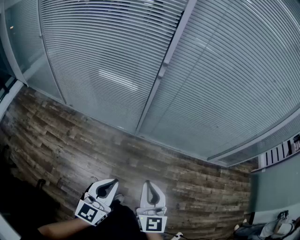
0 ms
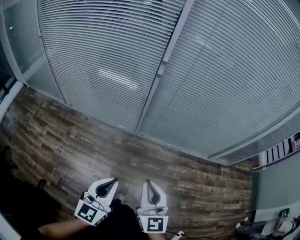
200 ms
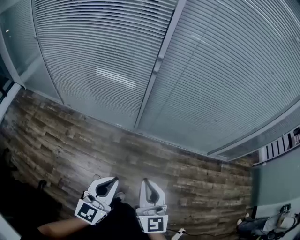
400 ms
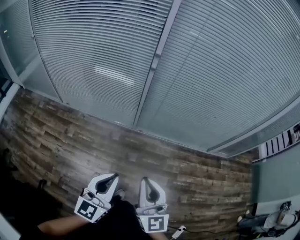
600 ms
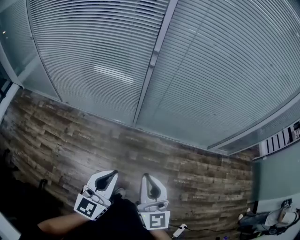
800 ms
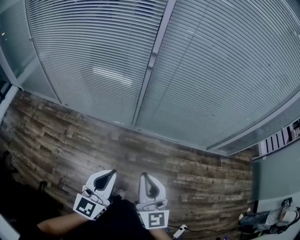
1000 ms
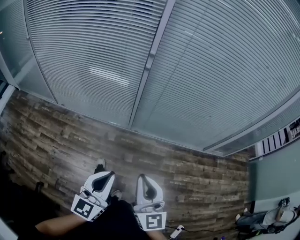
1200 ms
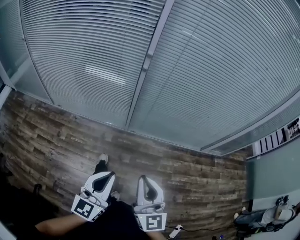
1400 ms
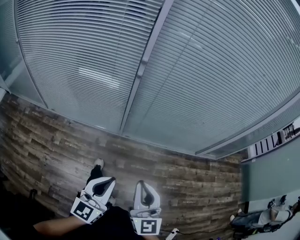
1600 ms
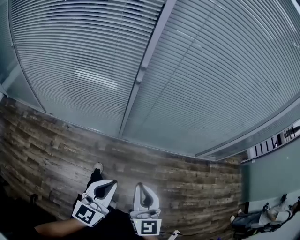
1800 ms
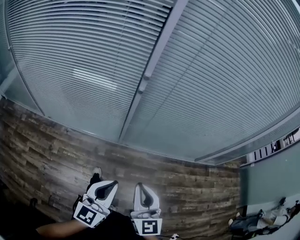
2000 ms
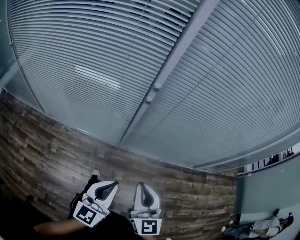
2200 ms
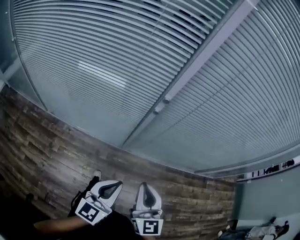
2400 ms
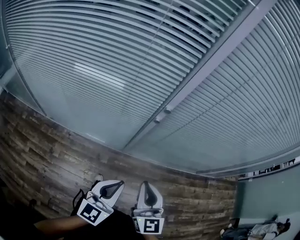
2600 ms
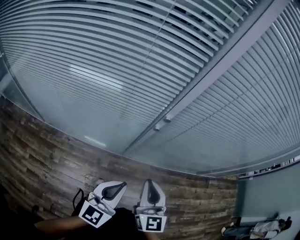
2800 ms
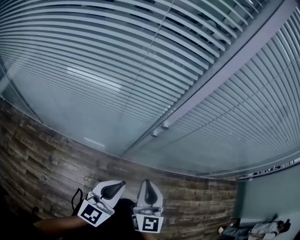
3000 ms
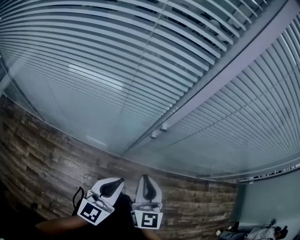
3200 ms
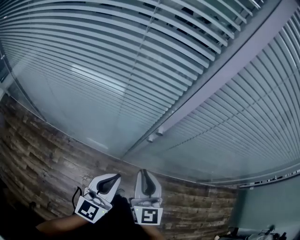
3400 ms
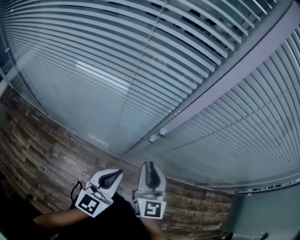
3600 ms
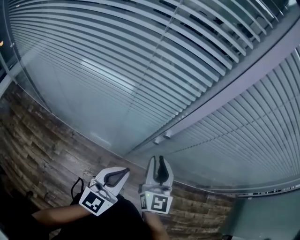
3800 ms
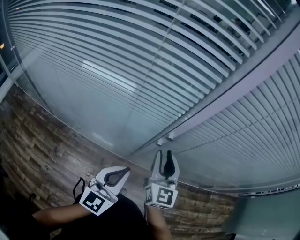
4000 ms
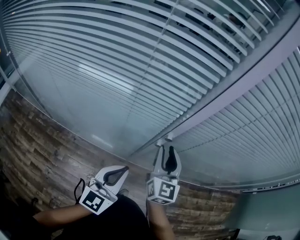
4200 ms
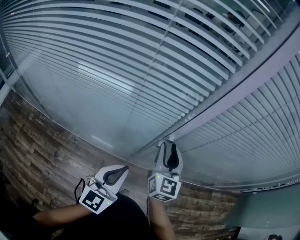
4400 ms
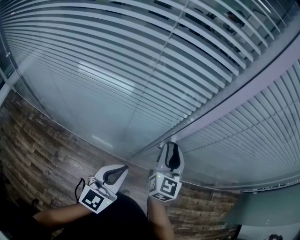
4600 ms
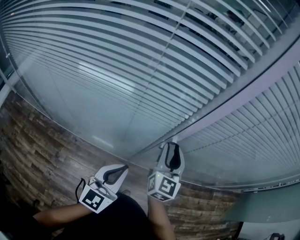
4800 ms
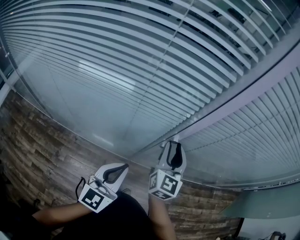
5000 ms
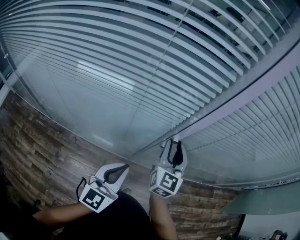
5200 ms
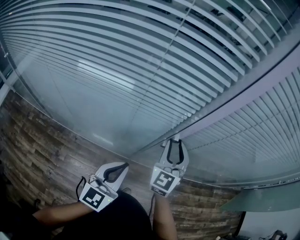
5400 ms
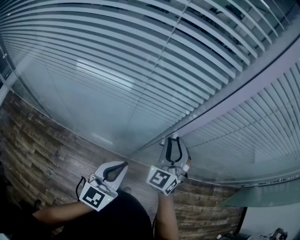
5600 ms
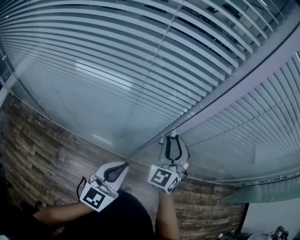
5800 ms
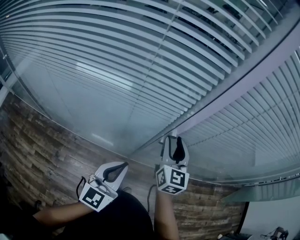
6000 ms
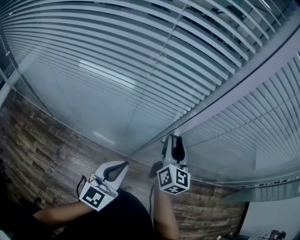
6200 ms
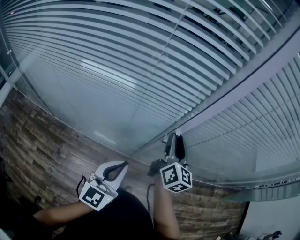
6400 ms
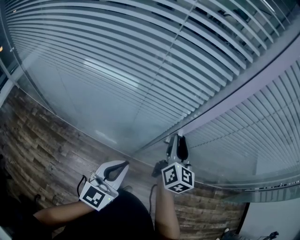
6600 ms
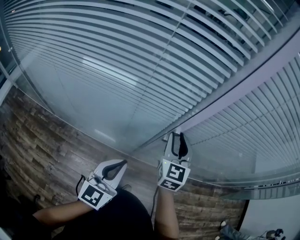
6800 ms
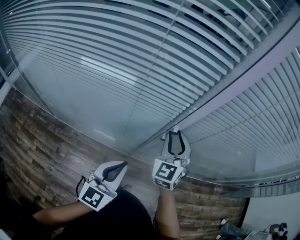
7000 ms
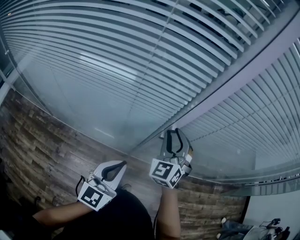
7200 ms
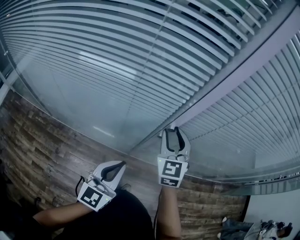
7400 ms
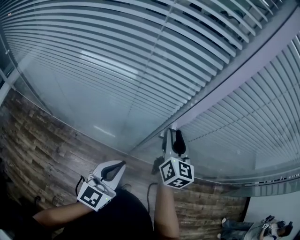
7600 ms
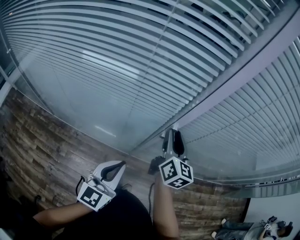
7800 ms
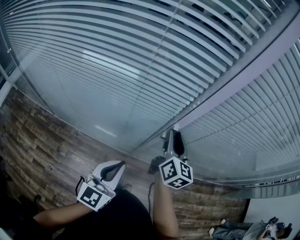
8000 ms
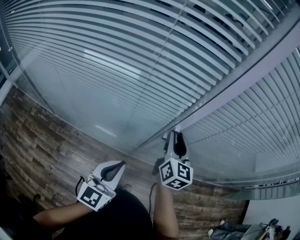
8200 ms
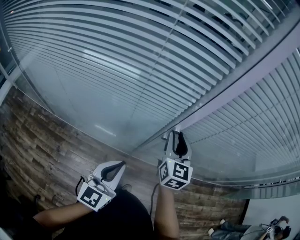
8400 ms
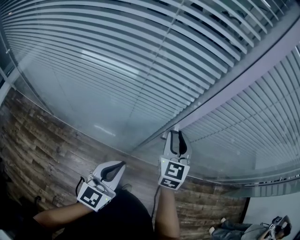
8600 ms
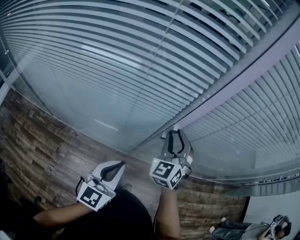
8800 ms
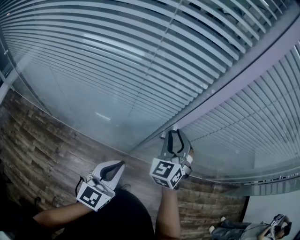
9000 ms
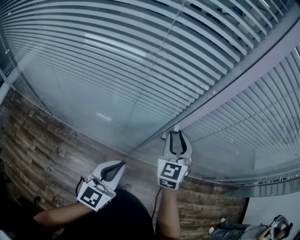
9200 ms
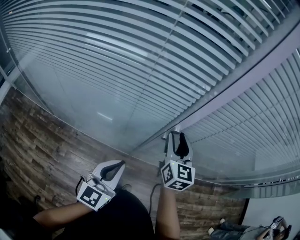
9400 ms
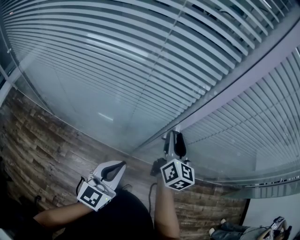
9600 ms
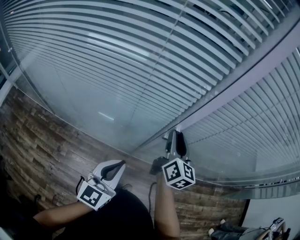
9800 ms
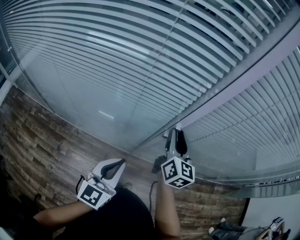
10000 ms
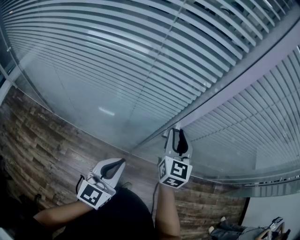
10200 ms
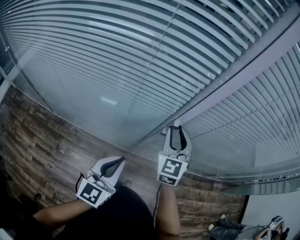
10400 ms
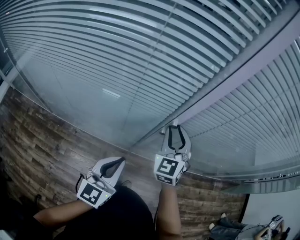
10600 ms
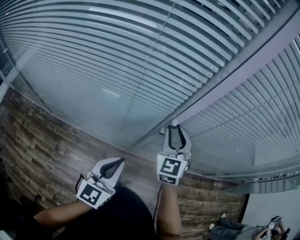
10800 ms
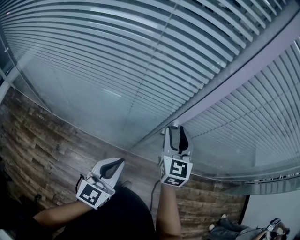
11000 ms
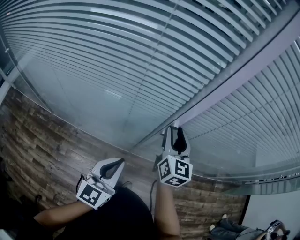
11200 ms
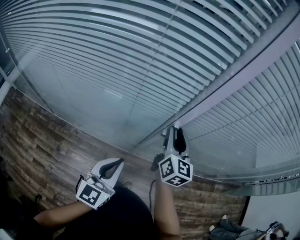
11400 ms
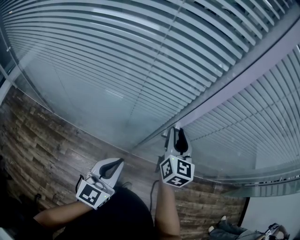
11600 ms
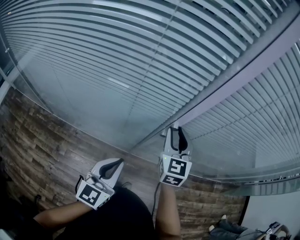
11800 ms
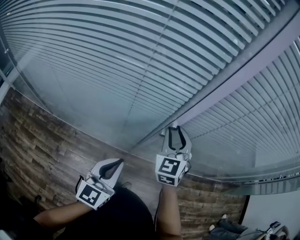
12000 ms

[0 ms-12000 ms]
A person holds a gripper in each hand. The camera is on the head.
0 ms to 1600 ms: The right gripper ends up about 5 cm from where it was; the left gripper heads forward, covering some 5 cm.
1600 ms to 3000 ms: The two grippers go approximately 30 cm forward and to the left.
3000 ms to 4400 ms: The left gripper goes about 5 cm forward; the right gripper is displaced forward by roughly 20 cm, and opens up.
7600 ms to 9000 ms: The right gripper rolls counterclockwise, seen from behind, by about 60 degrees.
9000 ms to 10400 ms: The right gripper rotates roughly 20 degrees.

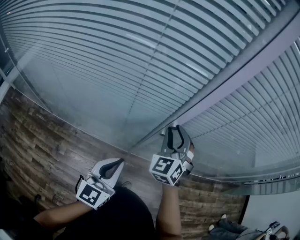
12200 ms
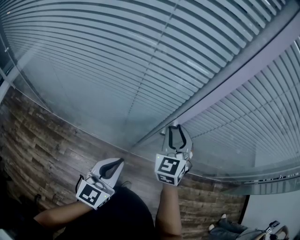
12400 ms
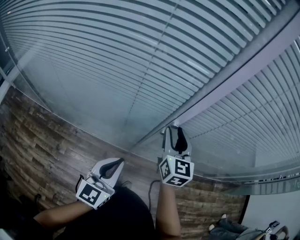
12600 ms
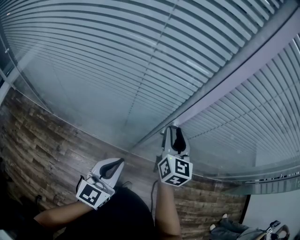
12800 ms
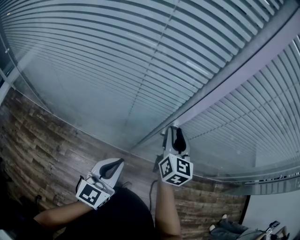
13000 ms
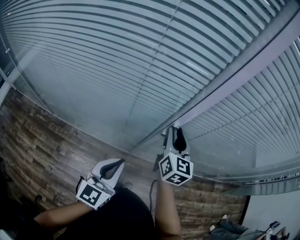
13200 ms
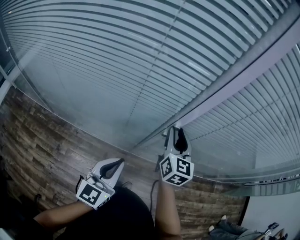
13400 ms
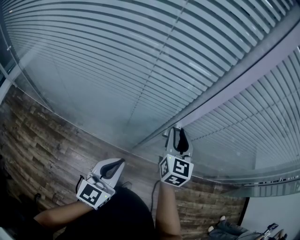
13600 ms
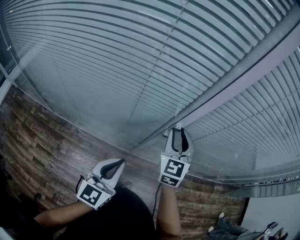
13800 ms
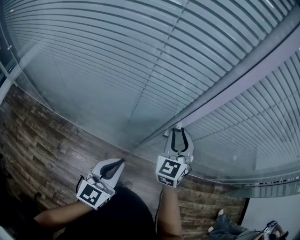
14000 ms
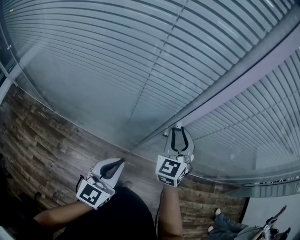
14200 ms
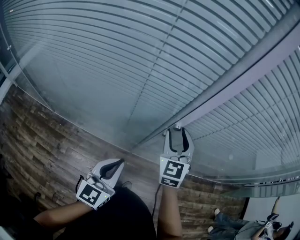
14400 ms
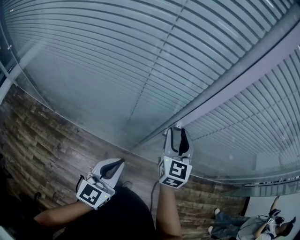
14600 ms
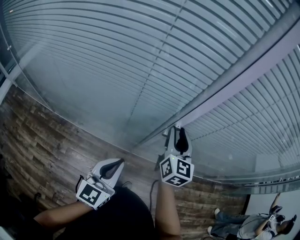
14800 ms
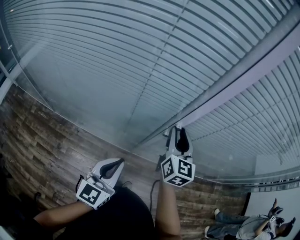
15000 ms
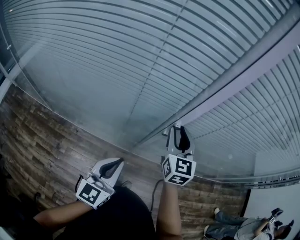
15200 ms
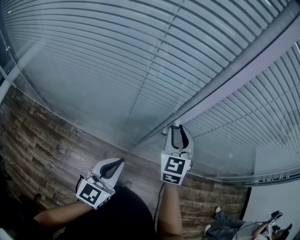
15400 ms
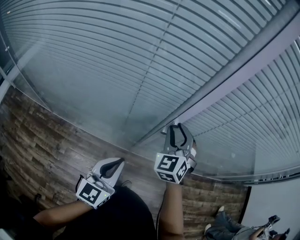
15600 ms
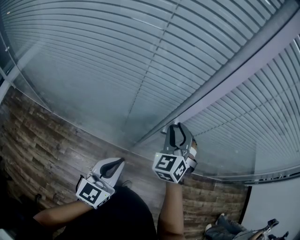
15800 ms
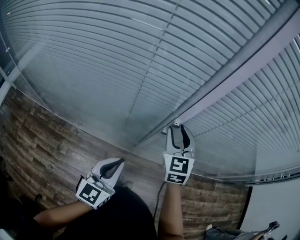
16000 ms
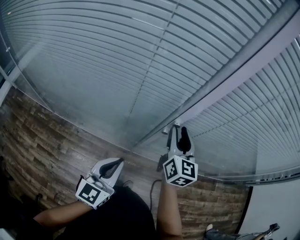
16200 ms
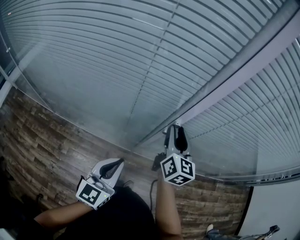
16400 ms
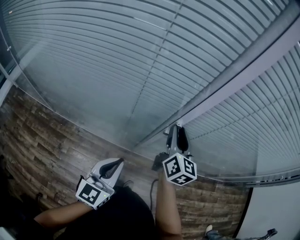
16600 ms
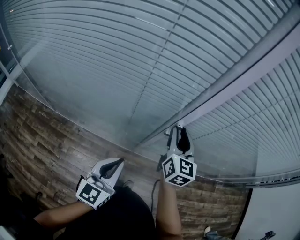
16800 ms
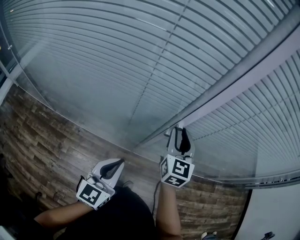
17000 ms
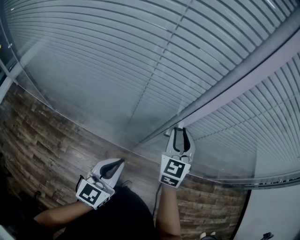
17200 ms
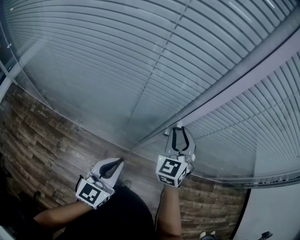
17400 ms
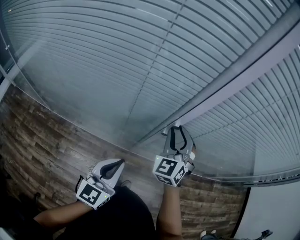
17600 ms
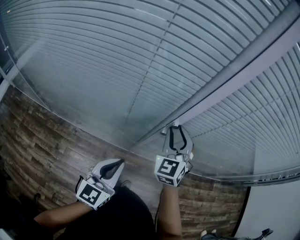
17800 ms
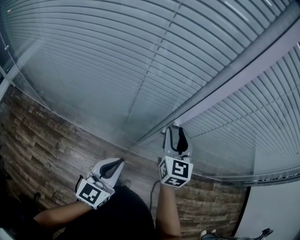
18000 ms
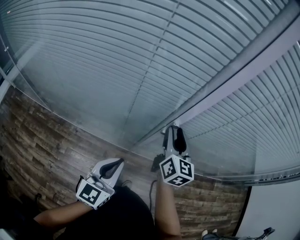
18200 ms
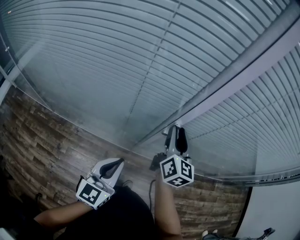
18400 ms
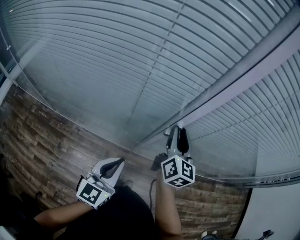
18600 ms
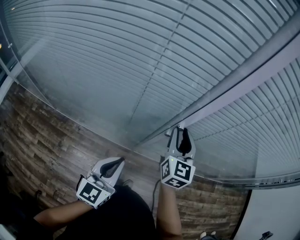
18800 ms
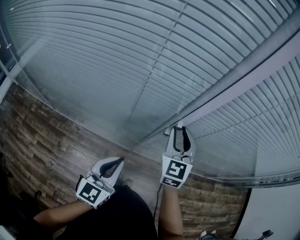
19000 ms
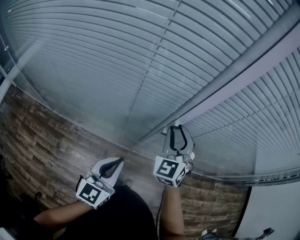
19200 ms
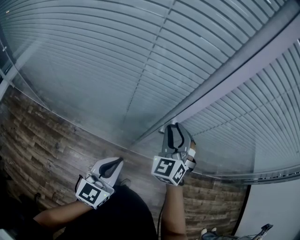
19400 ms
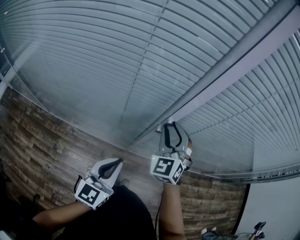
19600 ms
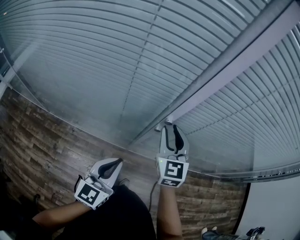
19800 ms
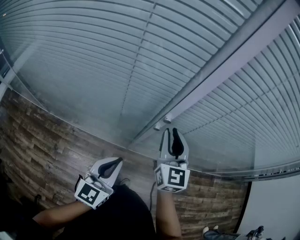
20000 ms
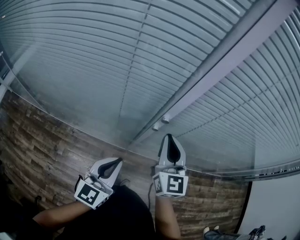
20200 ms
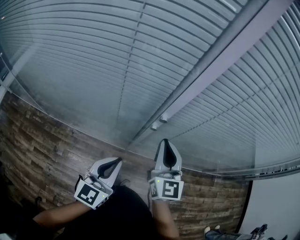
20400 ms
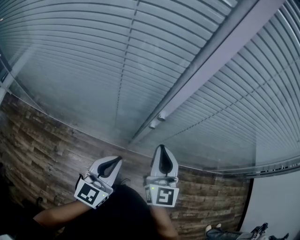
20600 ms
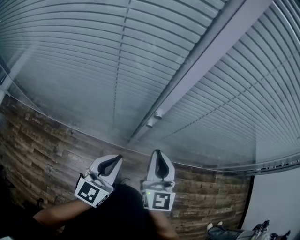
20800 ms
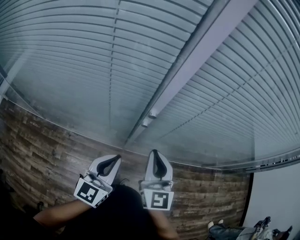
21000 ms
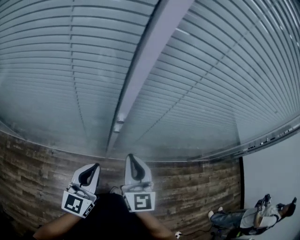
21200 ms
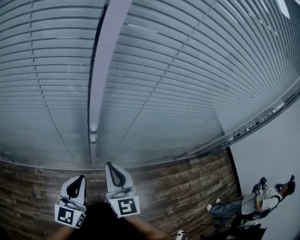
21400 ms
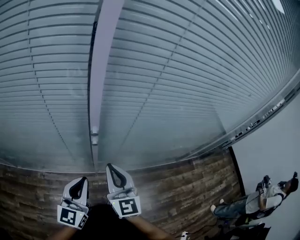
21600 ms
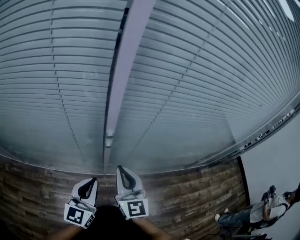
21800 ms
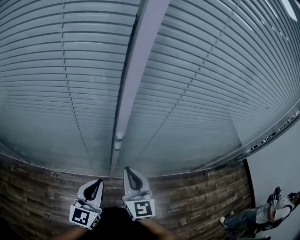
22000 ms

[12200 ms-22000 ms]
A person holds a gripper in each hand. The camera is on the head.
12200 ms to 13600 ms: The right gripper rotates around the line of its fingers by some 40 degrees, clockwise from behind.
16400 ms to 17800 ms: The right gripper twists some 50 degrees counterclockwise, seen from behind.
19200 ms to 20600 ms: The right gripper is displaced backward by about 10 cm, turns by some 40 degrees, and closes.
20600 ms to 22000 ms: The grippers make only small movements.

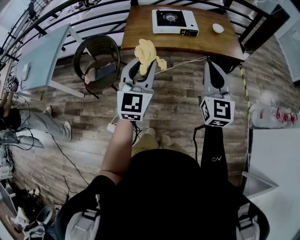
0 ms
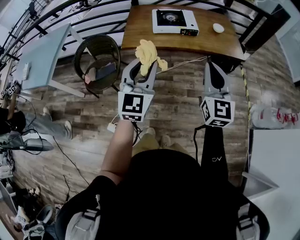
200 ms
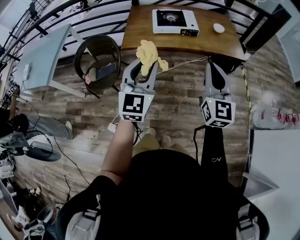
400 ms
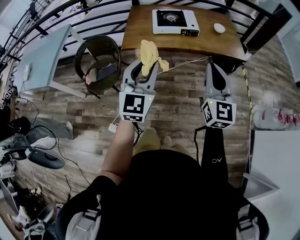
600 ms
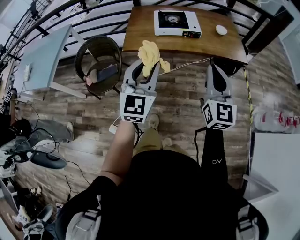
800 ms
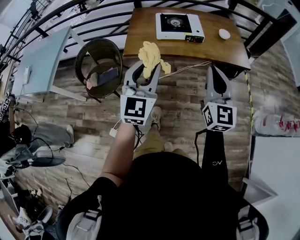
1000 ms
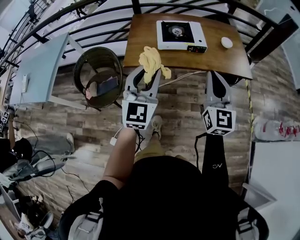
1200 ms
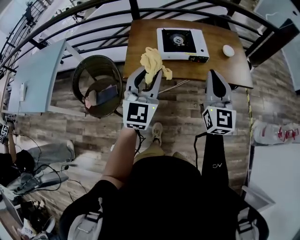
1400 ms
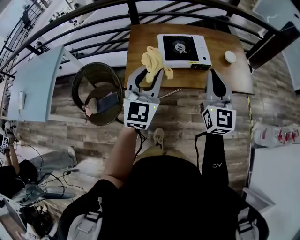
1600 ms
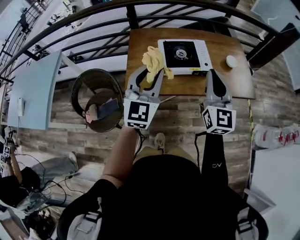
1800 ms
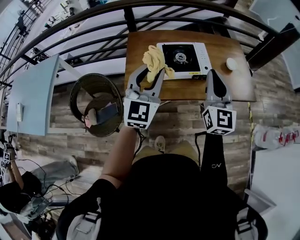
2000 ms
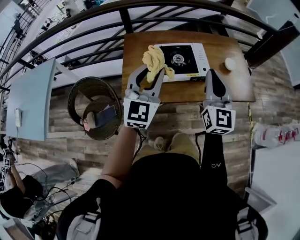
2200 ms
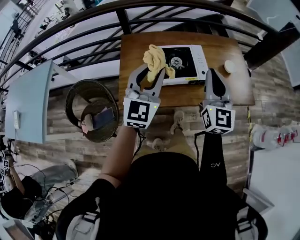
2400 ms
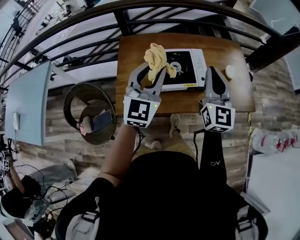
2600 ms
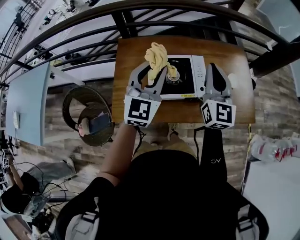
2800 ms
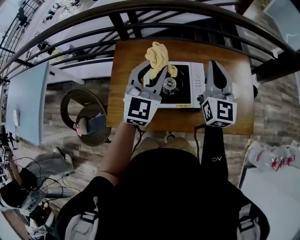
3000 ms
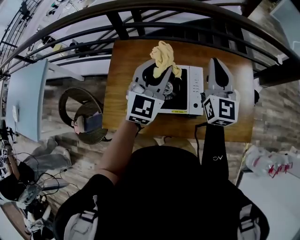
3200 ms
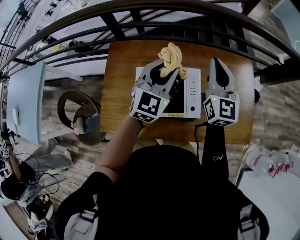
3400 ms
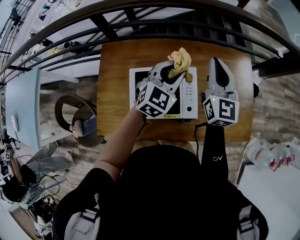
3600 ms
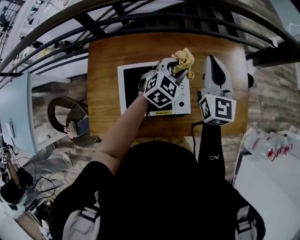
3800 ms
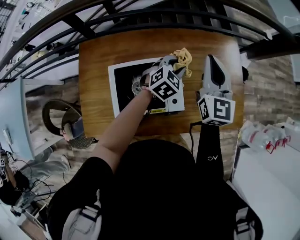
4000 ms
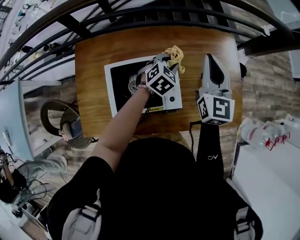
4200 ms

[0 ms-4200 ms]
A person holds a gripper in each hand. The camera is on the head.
0 ms to 1400 ms: The two grippers go roughly 20 cm forward.
1400 ms to 2800 ms: Both grippers move forward, approximately 35 cm.
2800 ms to 4200 ms: The left gripper travels downward, forward and to the right by roughly 40 cm, and angles its fingers downward, by approximately 40 degrees. Meanwhile the right gripper goes approximately 20 cm forward, to the right and downward.
